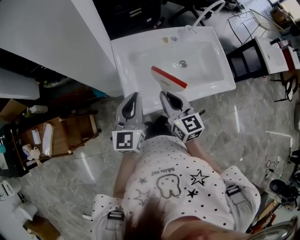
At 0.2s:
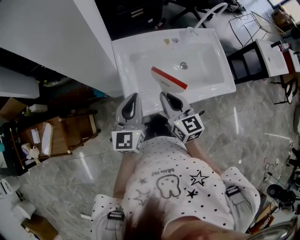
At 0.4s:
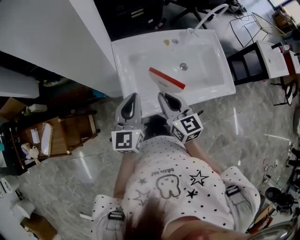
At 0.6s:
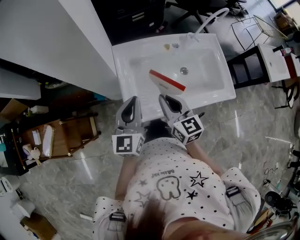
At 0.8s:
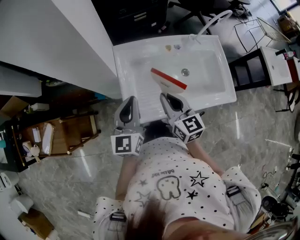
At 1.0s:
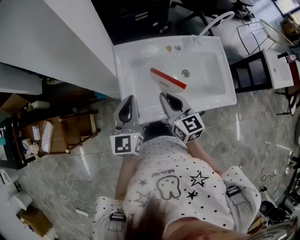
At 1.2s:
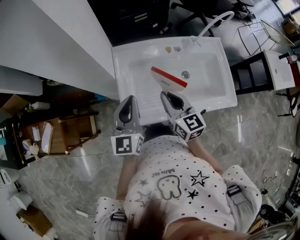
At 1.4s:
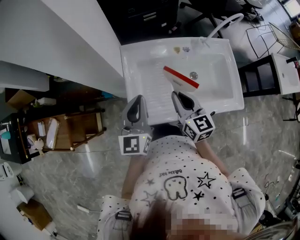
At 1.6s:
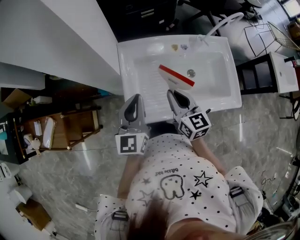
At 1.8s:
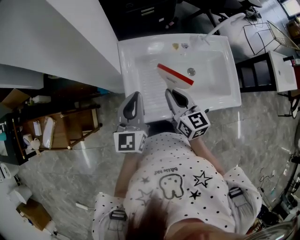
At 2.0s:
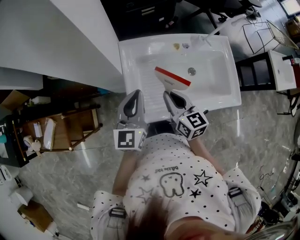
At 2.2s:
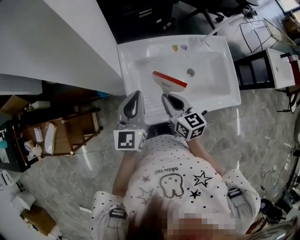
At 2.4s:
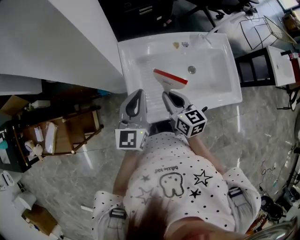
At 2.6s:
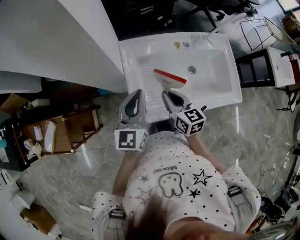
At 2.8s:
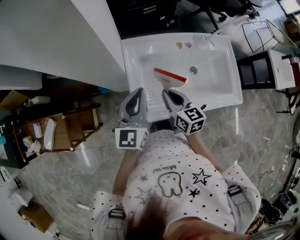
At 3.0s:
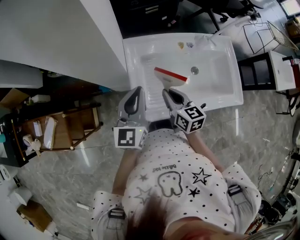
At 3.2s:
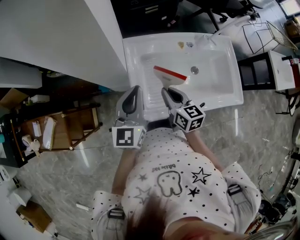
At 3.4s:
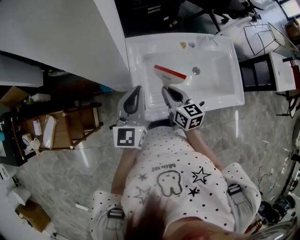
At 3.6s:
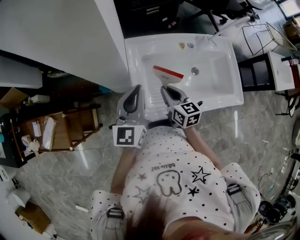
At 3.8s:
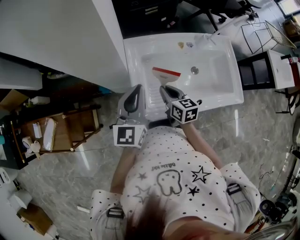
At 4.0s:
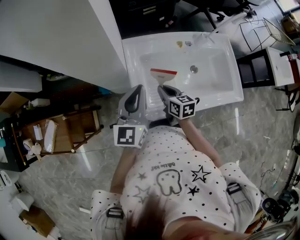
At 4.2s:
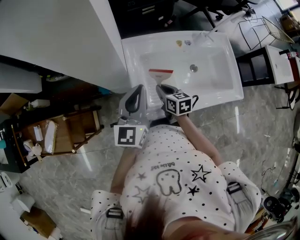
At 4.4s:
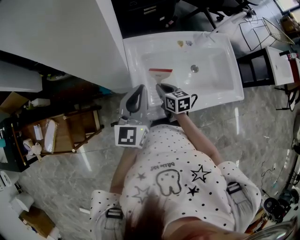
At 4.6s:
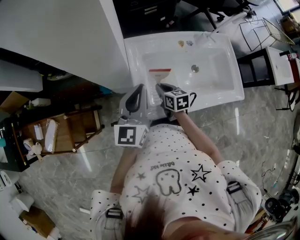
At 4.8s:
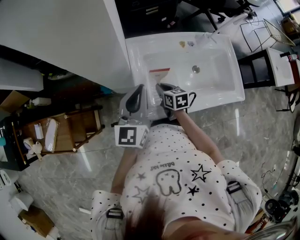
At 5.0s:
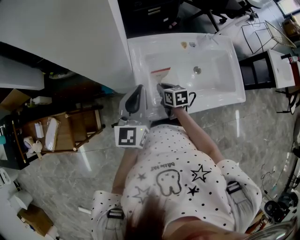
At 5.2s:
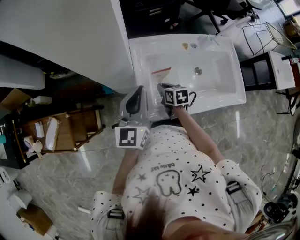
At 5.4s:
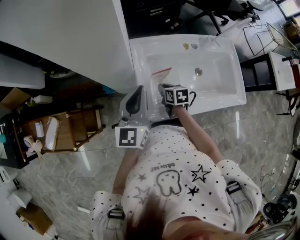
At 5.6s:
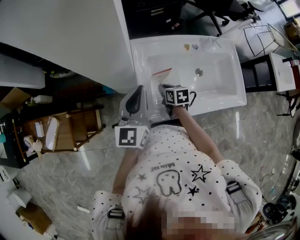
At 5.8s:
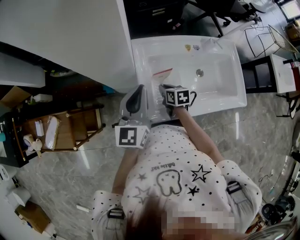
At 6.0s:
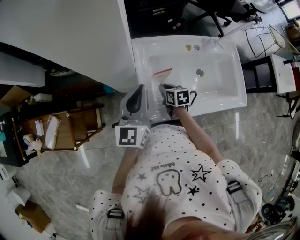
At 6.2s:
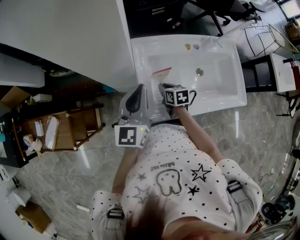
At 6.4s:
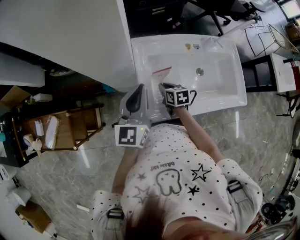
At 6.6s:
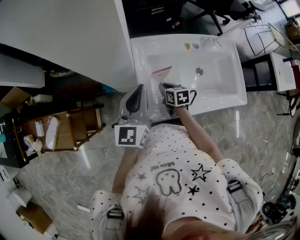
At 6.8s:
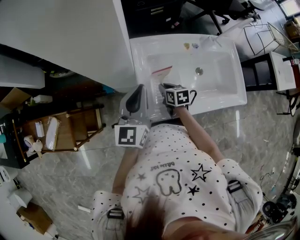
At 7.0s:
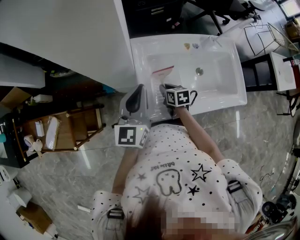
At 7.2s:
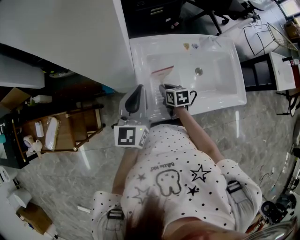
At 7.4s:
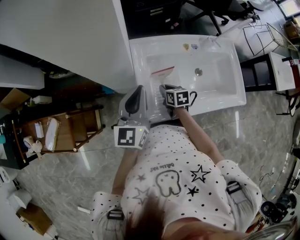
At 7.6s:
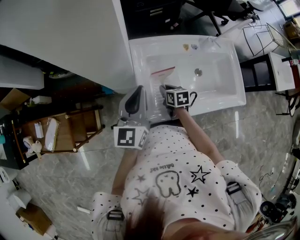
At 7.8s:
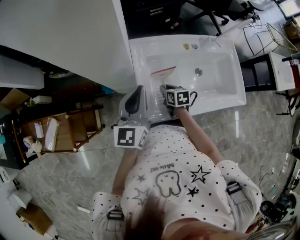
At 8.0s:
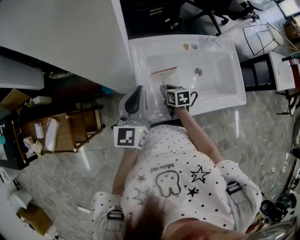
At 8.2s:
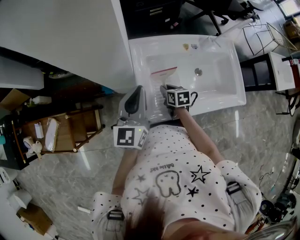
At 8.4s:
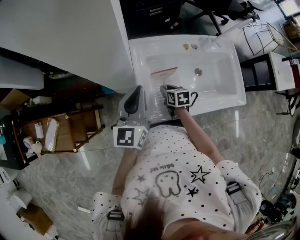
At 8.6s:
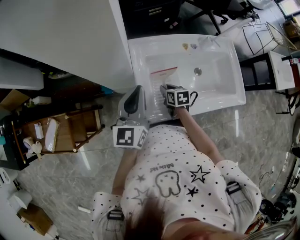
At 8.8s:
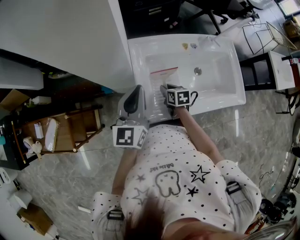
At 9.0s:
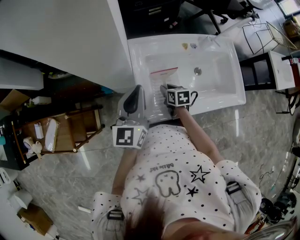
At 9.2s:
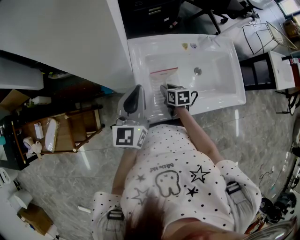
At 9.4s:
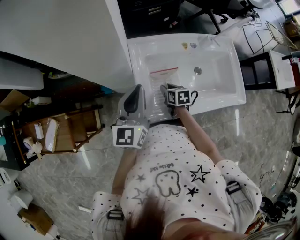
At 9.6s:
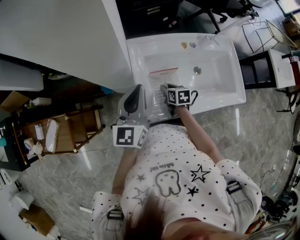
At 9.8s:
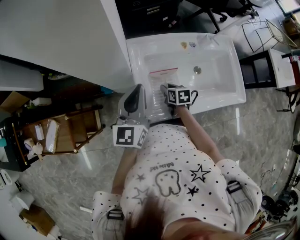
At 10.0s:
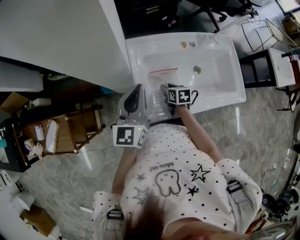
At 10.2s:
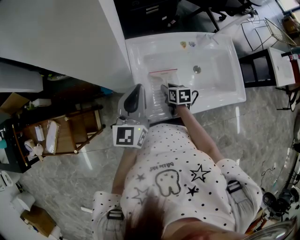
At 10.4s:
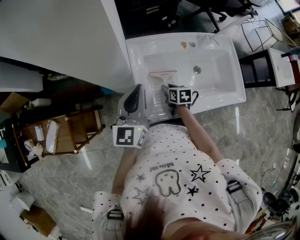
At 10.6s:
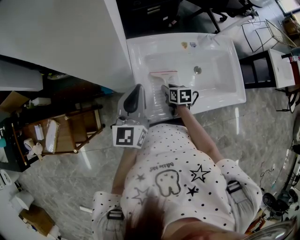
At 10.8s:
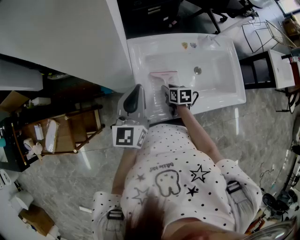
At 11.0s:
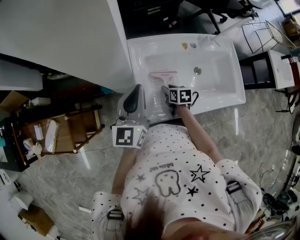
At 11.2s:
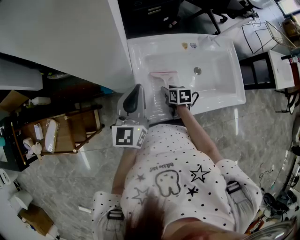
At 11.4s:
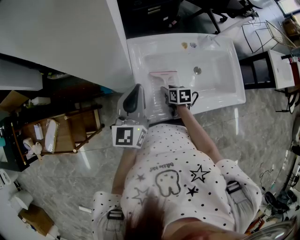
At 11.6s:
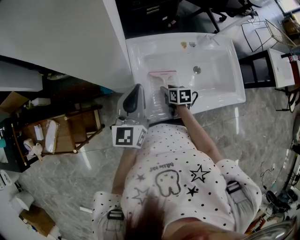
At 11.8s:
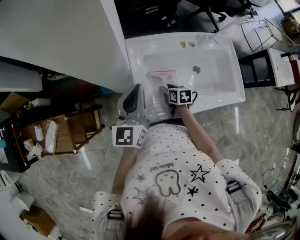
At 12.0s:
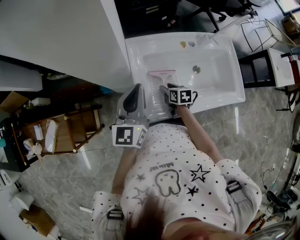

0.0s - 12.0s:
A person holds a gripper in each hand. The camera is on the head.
0.0s - 1.6s: The right gripper moves forward, roughly 5 cm, while the left gripper shifts by roughly 5 cm.
1.6s - 3.0s: The right gripper is displaced to the left by roughly 5 cm.
3.0s - 4.4s: The right gripper goes approximately 10 cm downward.
4.4s - 7.6s: The grippers stay close to where they were, moving slightly.
7.6s - 9.0s: The two grippers keep their place.
9.0s - 10.4s: The grippers make only small movements.
10.4s - 12.0s: Both grippers stay put.

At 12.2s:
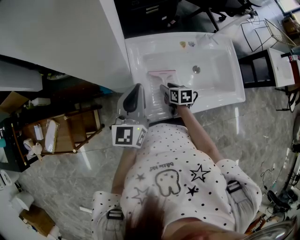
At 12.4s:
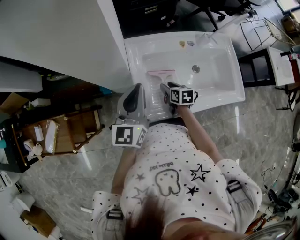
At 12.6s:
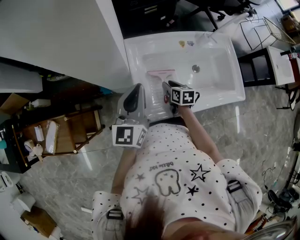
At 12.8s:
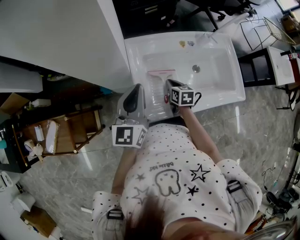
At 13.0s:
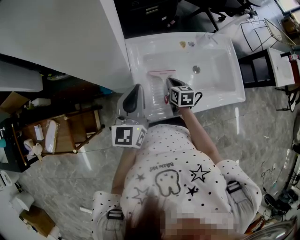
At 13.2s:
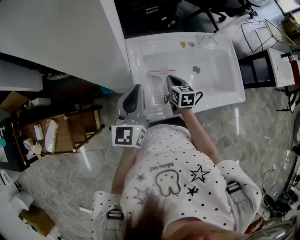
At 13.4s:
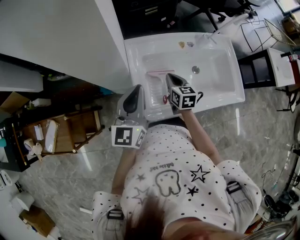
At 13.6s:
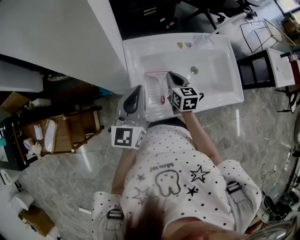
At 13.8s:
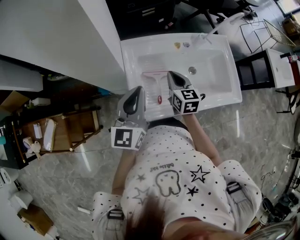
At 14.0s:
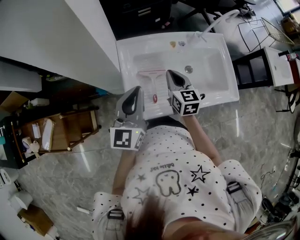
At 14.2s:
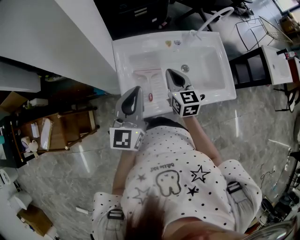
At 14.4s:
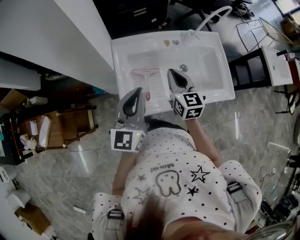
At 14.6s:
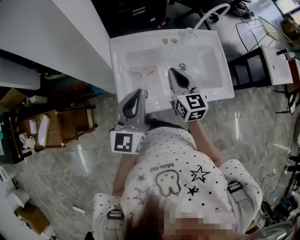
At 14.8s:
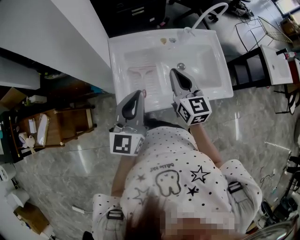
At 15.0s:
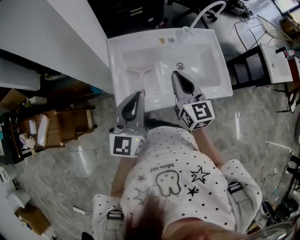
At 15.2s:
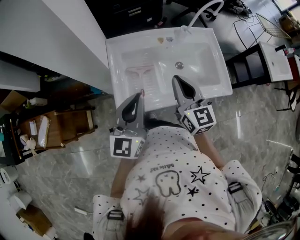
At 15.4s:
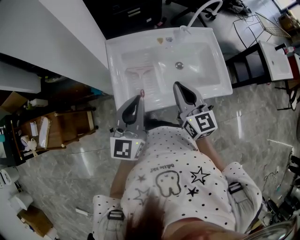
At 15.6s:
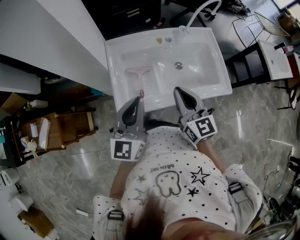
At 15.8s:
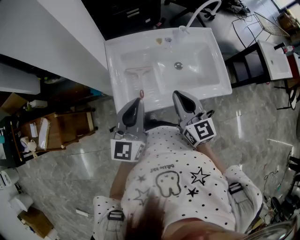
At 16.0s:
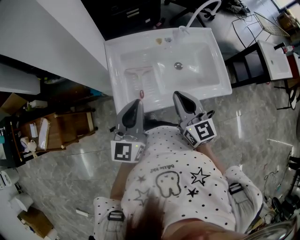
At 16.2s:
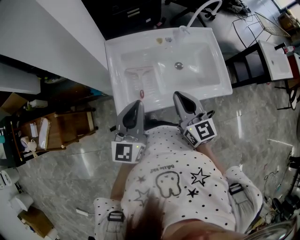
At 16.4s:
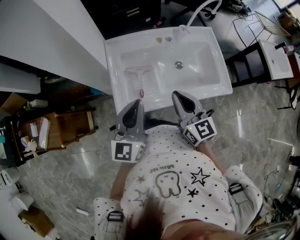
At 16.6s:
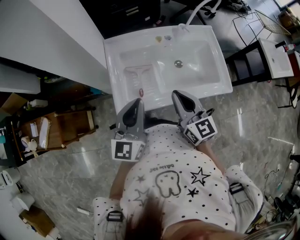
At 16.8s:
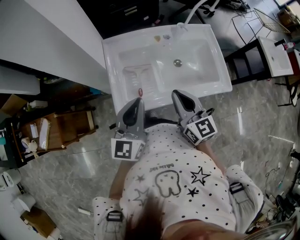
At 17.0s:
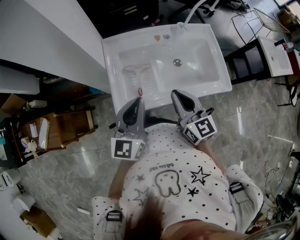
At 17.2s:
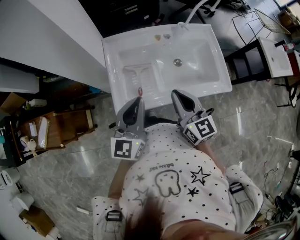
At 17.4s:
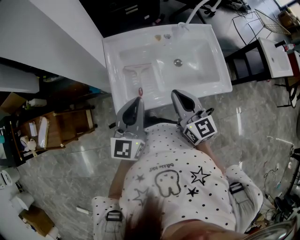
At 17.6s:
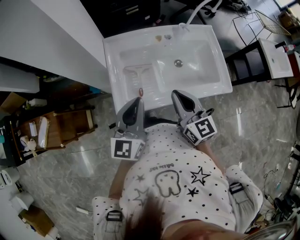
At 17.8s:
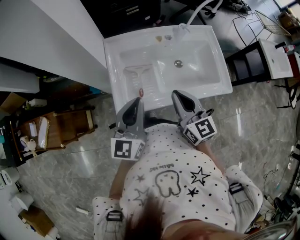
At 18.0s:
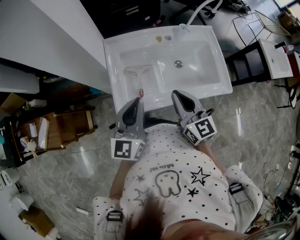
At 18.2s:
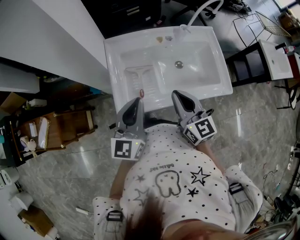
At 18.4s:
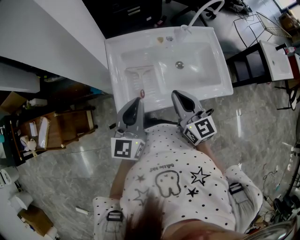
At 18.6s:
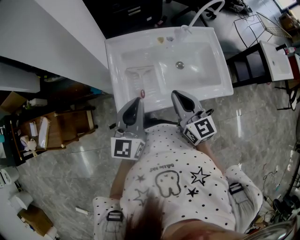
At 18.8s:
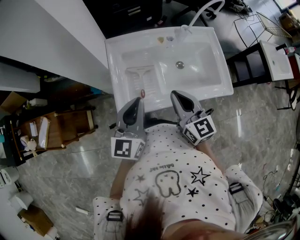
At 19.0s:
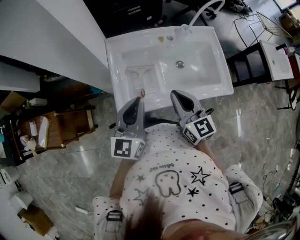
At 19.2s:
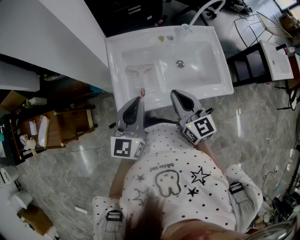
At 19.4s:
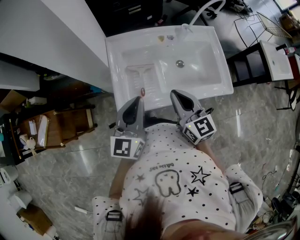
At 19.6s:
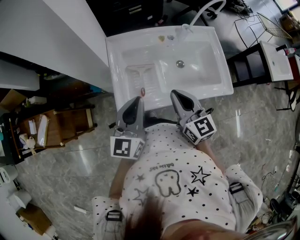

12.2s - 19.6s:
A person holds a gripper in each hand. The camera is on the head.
12.2s - 13.6s: The right gripper heads upward, covering roughly 15 cm, rotates approximately 30 degrees, and closes.
13.6s - 15.2s: The left gripper travels to the right and backward by some 15 cm, while the right gripper moves upward, backward and to the right, roughly 20 cm, and changes its angle by some 20 degrees.
15.2s - 16.6s: The right gripper shifts by some 5 cm.
16.6s - 18.2s: Both grippers stay about where they are.
18.2s - 19.6s: Both grippers stay put.

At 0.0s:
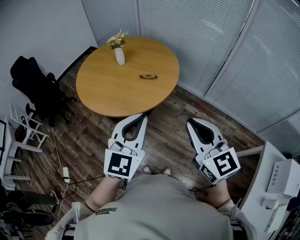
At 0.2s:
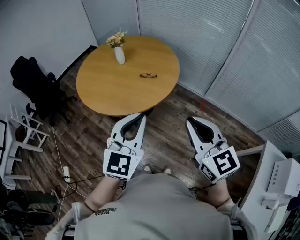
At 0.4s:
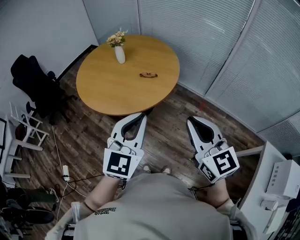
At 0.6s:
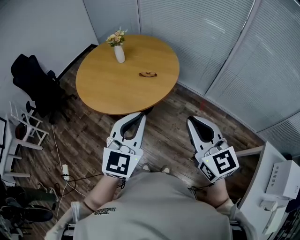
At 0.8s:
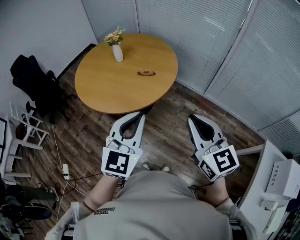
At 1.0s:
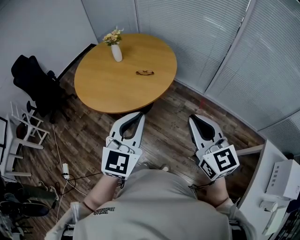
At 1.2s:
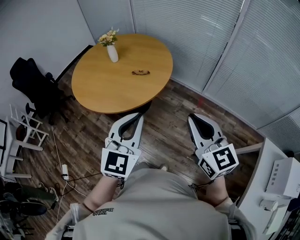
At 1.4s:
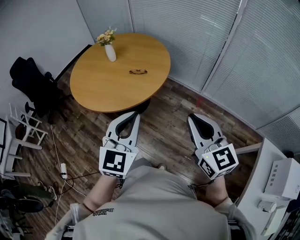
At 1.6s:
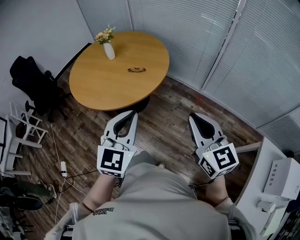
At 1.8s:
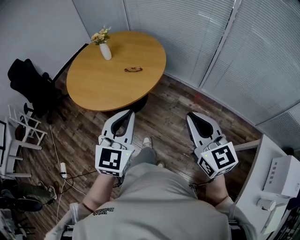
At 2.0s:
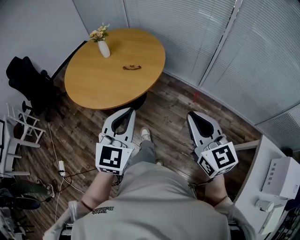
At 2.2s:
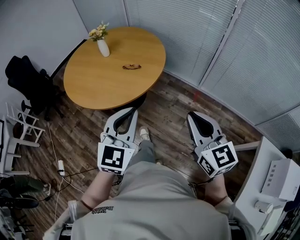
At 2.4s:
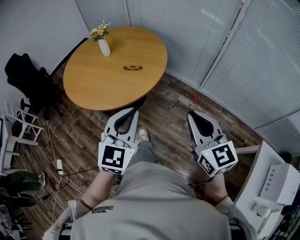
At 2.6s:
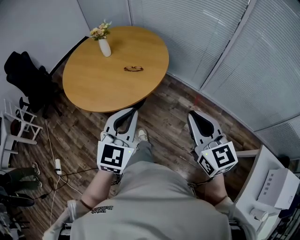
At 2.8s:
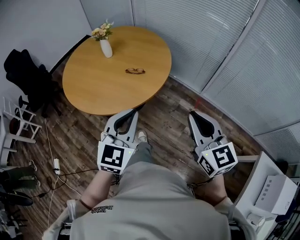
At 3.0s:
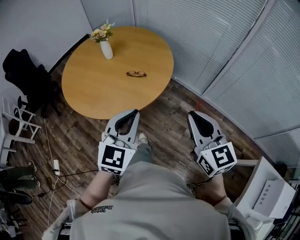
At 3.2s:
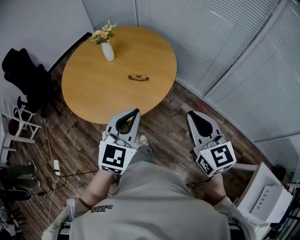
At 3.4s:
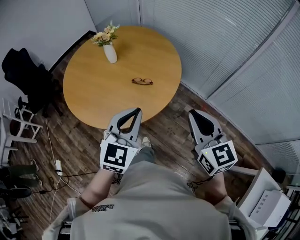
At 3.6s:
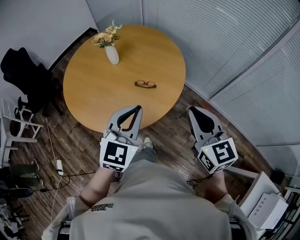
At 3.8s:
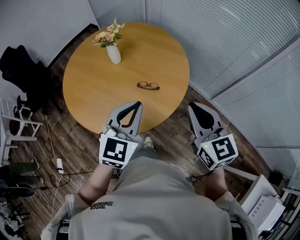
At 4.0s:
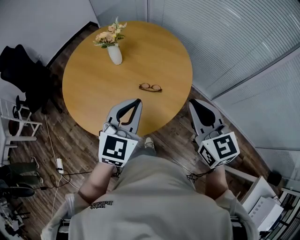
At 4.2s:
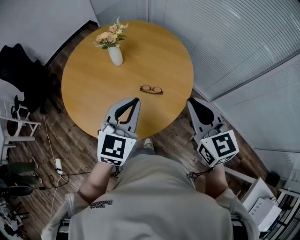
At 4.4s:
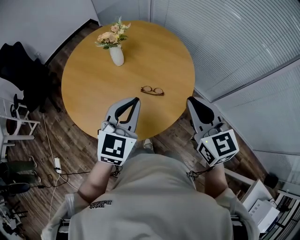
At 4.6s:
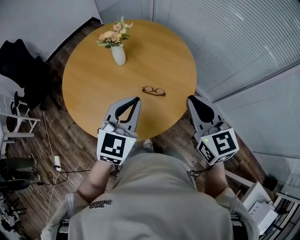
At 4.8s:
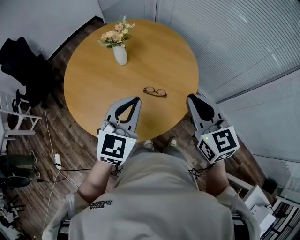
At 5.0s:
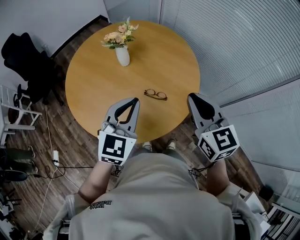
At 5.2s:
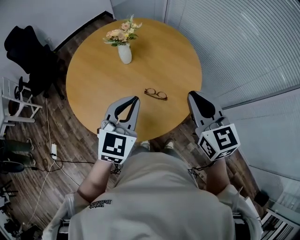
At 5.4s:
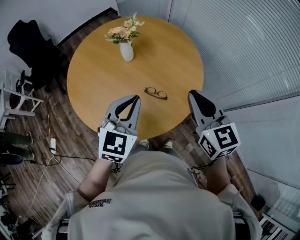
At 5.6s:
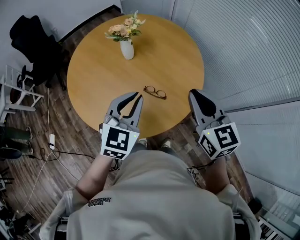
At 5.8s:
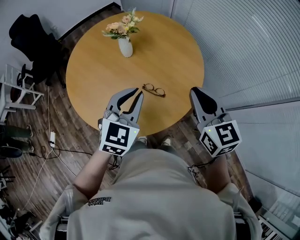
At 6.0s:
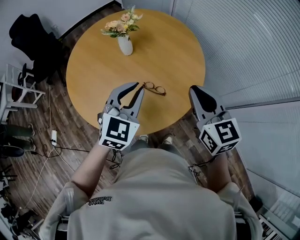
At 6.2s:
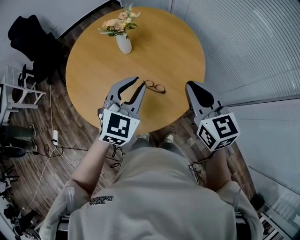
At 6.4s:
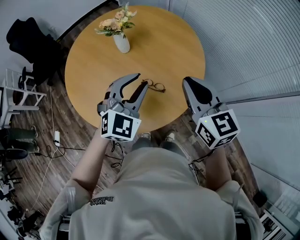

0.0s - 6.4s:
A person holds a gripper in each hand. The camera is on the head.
0.0s - 1.6s: The left gripper shifts some 10 cm to the right. Meanwhile the right gripper is displaced to the right by roughly 15 cm.
1.6s - 3.2s: Both grippers move forward, approximately 20 cm.
3.2s - 4.8s: The grippers both shift forward and to the left by roughly 25 cm.
4.8s - 6.4s: The left gripper is displaced forward and to the right by some 10 cm, rotates some 20 degrees, and opens, while the right gripper heads forward, covering some 10 cm.
